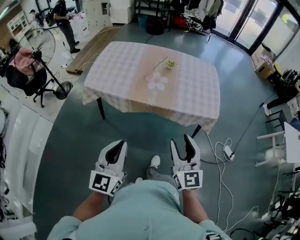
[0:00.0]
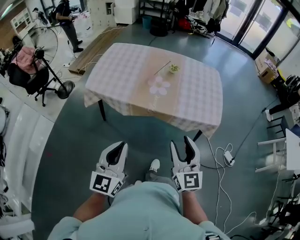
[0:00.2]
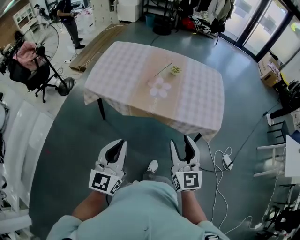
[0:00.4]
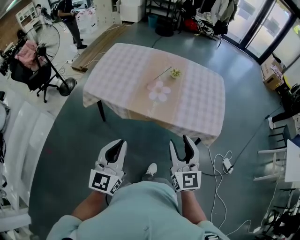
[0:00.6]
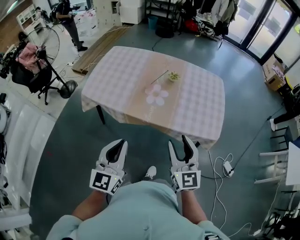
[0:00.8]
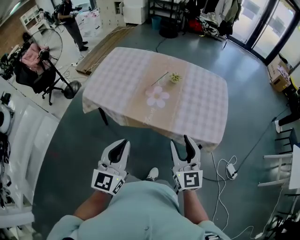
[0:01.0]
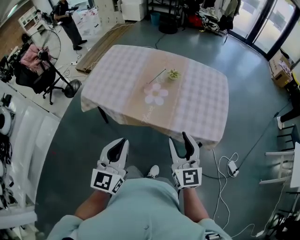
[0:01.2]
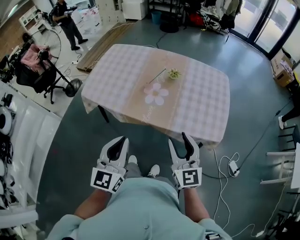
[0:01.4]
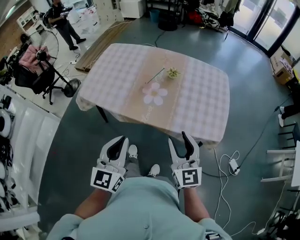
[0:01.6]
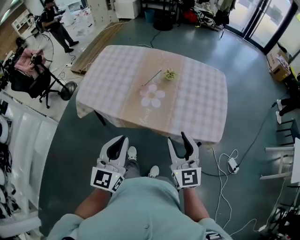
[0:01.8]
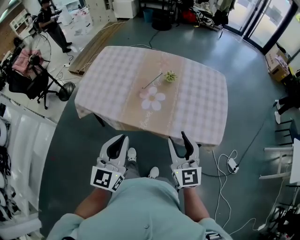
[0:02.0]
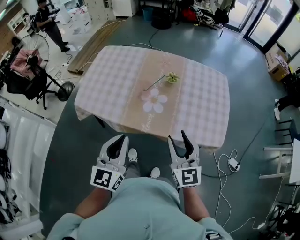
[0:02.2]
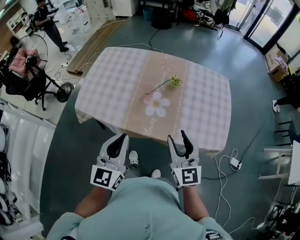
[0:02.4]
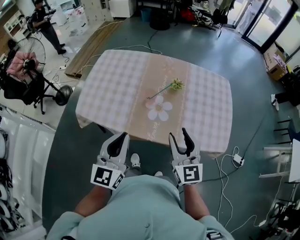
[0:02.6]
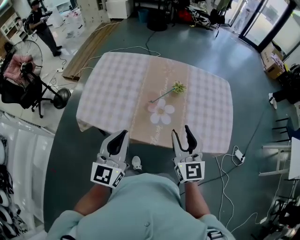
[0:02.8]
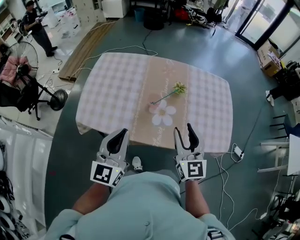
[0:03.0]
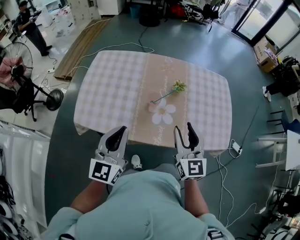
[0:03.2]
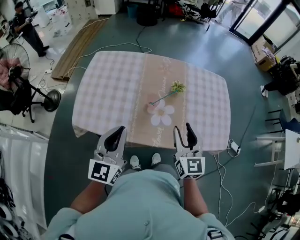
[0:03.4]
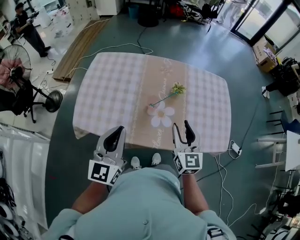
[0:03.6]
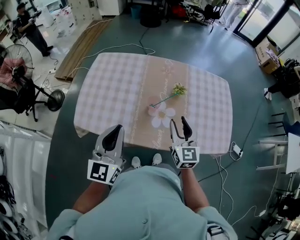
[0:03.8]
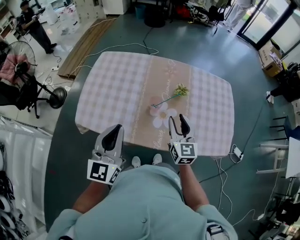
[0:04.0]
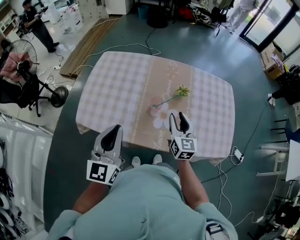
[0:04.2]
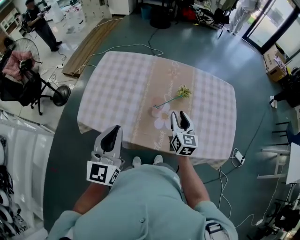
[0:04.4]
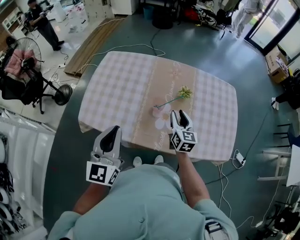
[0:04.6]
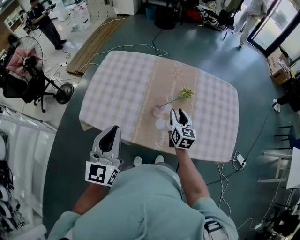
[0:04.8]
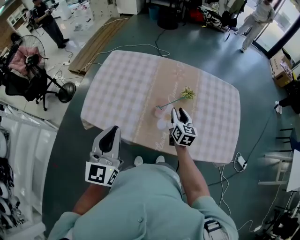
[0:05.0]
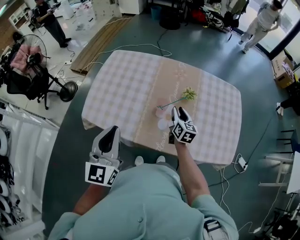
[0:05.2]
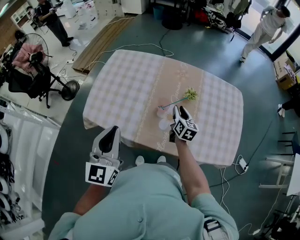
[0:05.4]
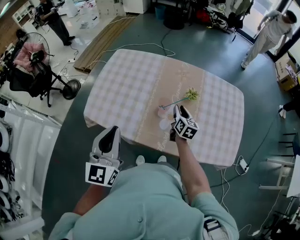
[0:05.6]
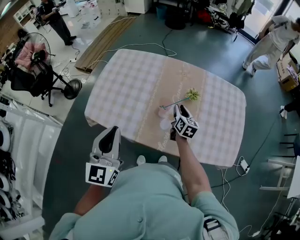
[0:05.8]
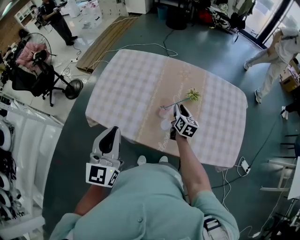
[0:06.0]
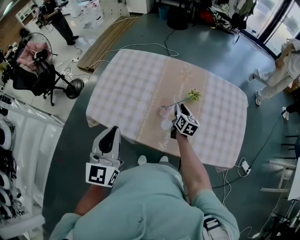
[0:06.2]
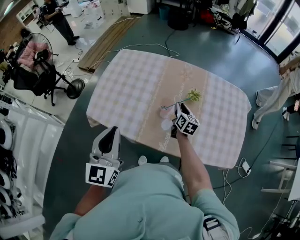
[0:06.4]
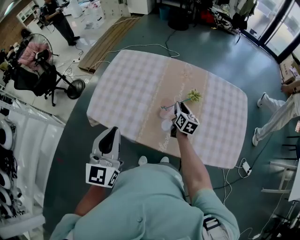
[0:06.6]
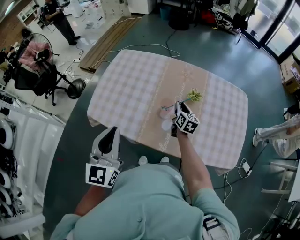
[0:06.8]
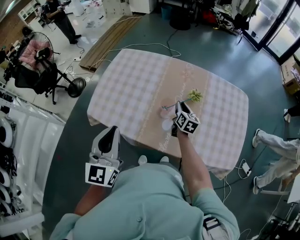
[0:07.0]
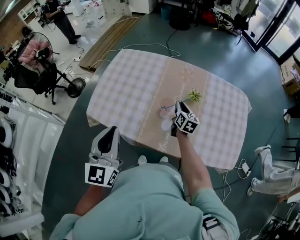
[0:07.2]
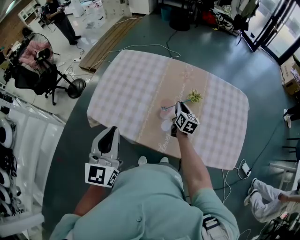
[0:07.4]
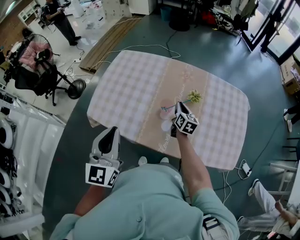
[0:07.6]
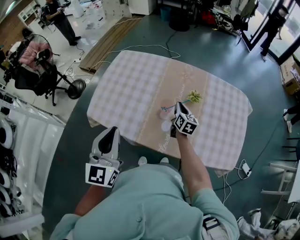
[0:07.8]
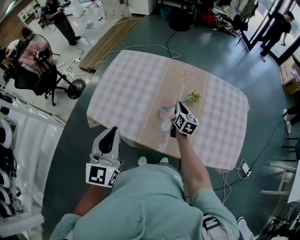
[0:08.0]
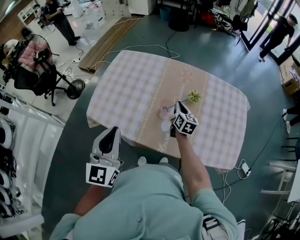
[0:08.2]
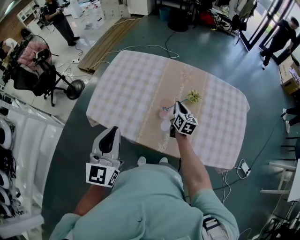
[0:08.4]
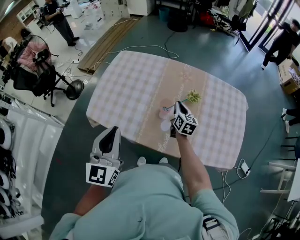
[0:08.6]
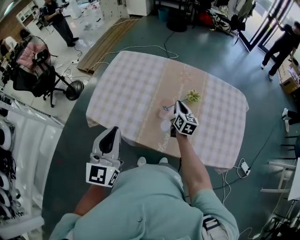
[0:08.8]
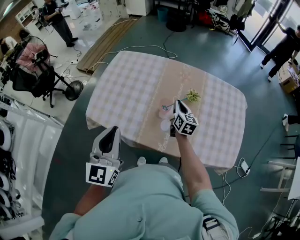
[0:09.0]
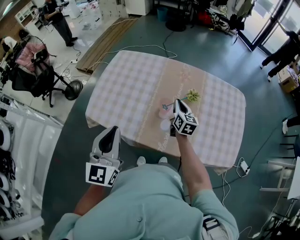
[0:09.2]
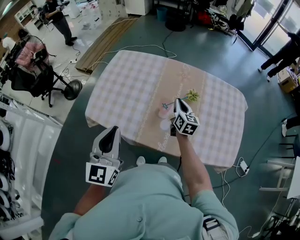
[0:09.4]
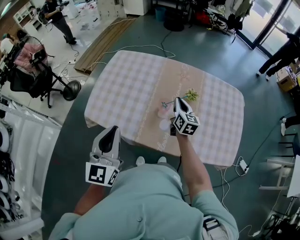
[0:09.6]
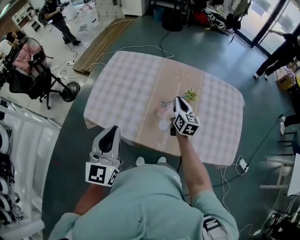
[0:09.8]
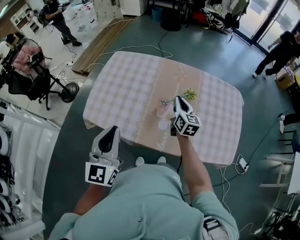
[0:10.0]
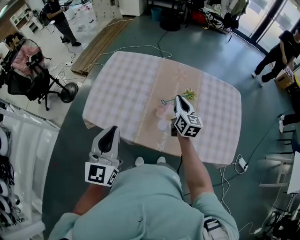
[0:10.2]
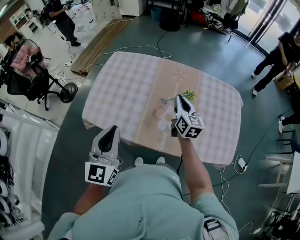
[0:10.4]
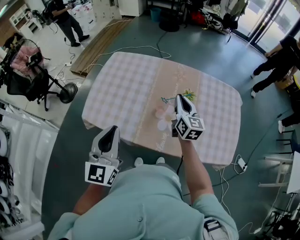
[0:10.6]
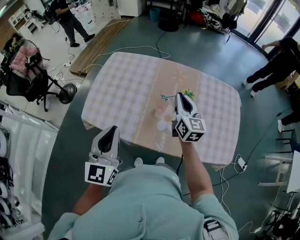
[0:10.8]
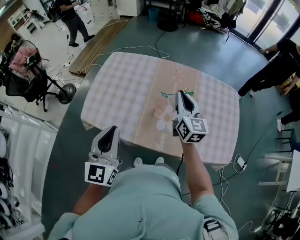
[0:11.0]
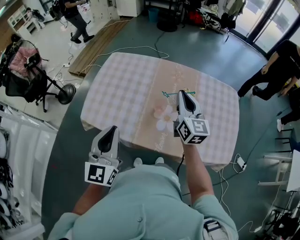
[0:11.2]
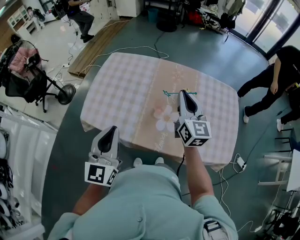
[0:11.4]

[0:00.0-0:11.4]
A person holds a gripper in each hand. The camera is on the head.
0:00.0 to 0:01.4: The two grippers go some 20 cm forward and to the right.
0:01.4 to 0:02.8: Both grippers travel together forward and to the left, about 20 cm.
0:02.8 to 0:04.2: The left gripper travels to the left and forward by some 10 cm; the right gripper is displaced forward and downward by roughly 15 cm.
0:04.2 to 0:05.6: The right gripper moves downward and forward, some 15 cm, and swivels some 20 degrees.
0:05.6 to 0:08.6: The grippers stay close to where they were, moving slightly.
0:08.6 to 0:10.0: The right gripper is displaced upward by approximately 5 cm.
0:10.0 to 0:11.4: The right gripper is displaced upward by some 15 cm.

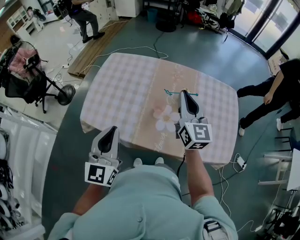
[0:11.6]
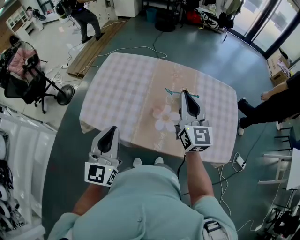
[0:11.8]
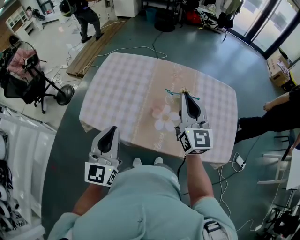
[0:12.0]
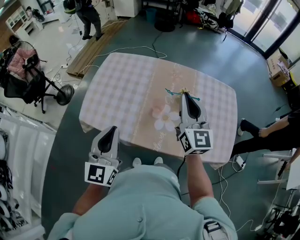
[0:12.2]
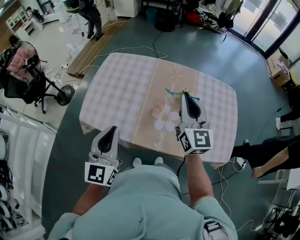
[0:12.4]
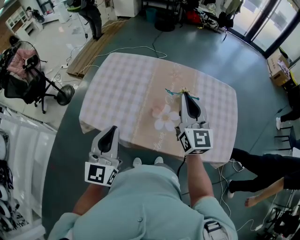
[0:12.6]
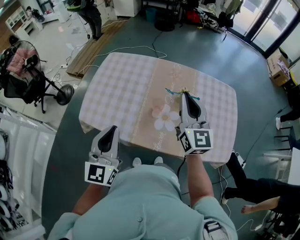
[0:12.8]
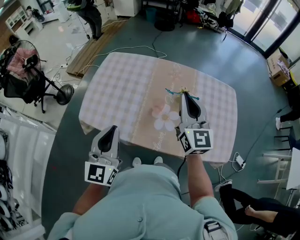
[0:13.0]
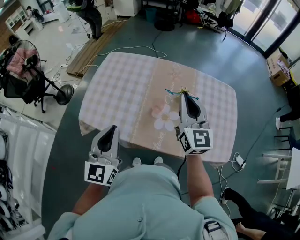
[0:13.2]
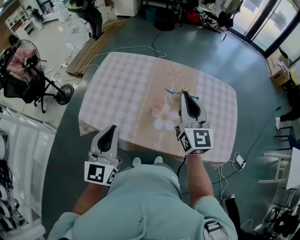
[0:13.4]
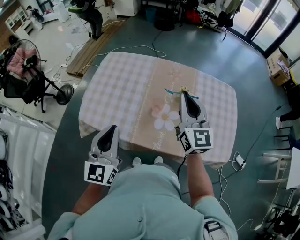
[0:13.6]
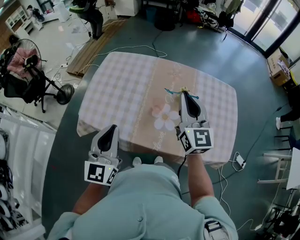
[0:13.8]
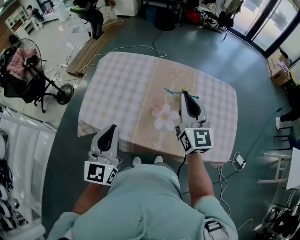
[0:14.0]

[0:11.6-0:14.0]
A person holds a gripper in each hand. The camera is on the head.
0:11.6 to 0:12.8: There are only small adjustments of the grippers.
0:12.8 to 0:14.0: Both grippers stay put.

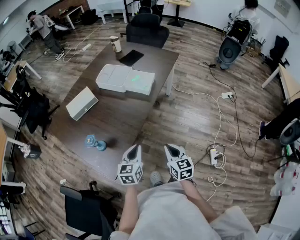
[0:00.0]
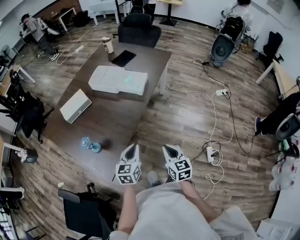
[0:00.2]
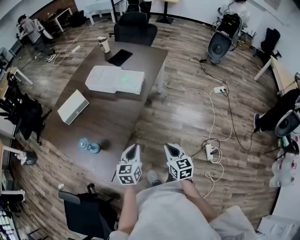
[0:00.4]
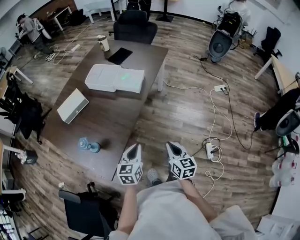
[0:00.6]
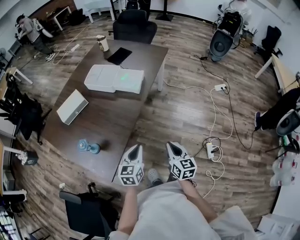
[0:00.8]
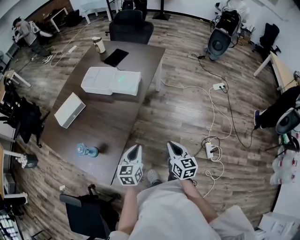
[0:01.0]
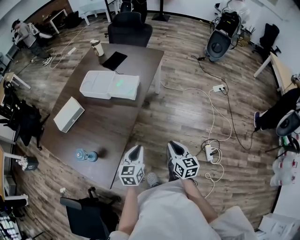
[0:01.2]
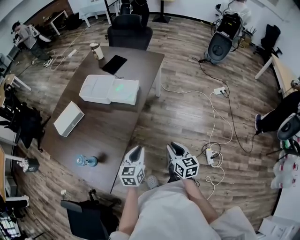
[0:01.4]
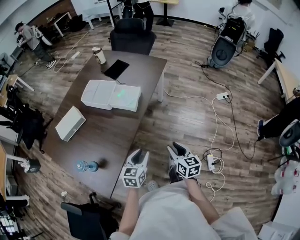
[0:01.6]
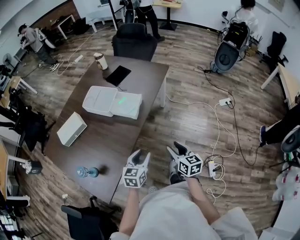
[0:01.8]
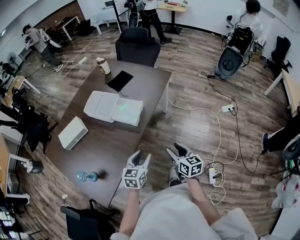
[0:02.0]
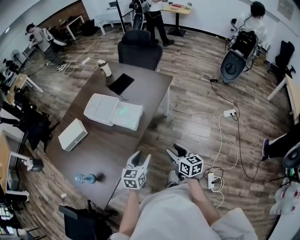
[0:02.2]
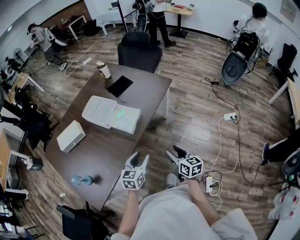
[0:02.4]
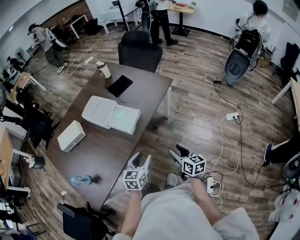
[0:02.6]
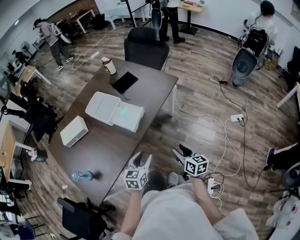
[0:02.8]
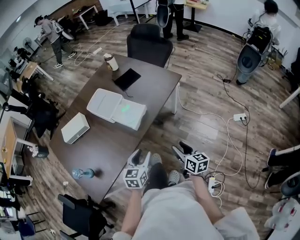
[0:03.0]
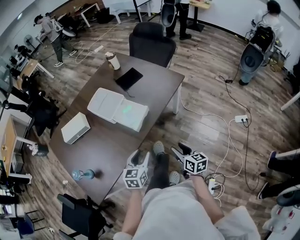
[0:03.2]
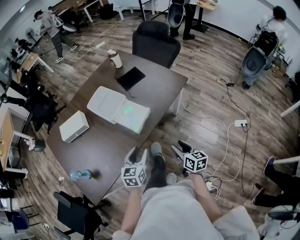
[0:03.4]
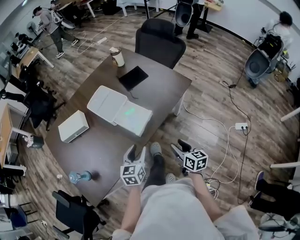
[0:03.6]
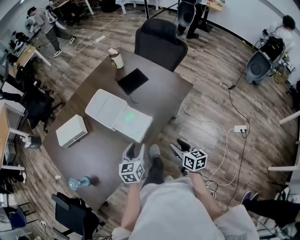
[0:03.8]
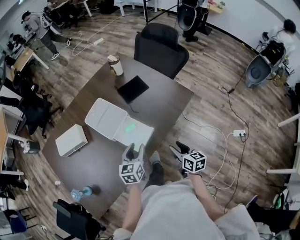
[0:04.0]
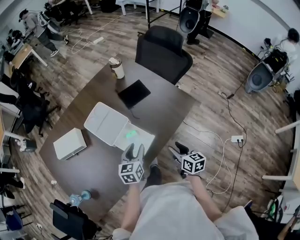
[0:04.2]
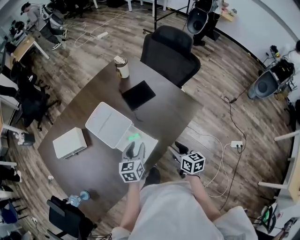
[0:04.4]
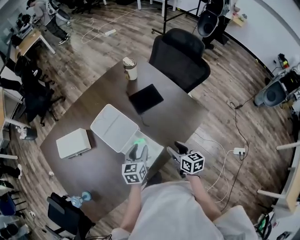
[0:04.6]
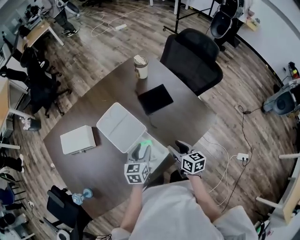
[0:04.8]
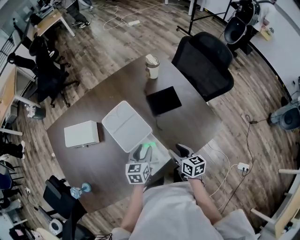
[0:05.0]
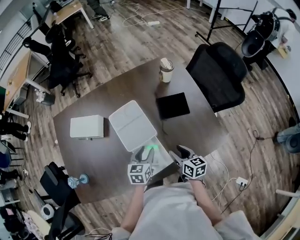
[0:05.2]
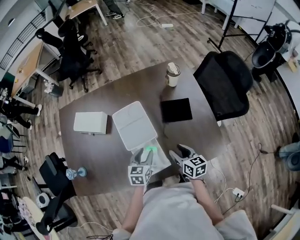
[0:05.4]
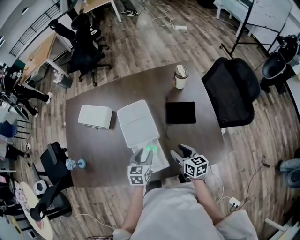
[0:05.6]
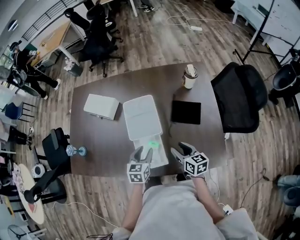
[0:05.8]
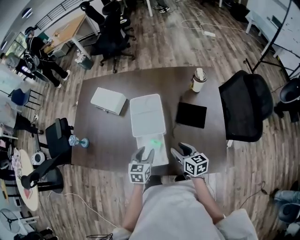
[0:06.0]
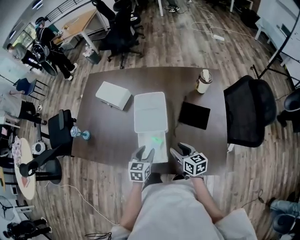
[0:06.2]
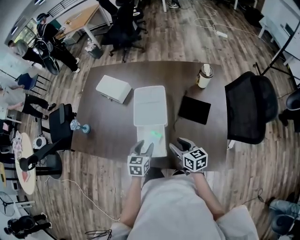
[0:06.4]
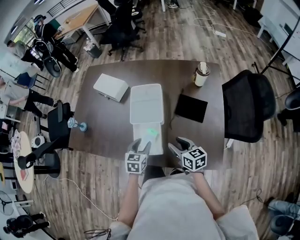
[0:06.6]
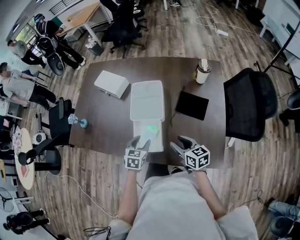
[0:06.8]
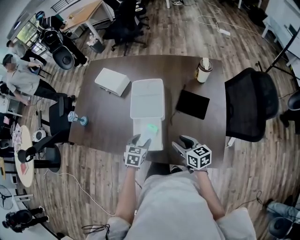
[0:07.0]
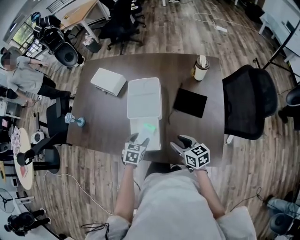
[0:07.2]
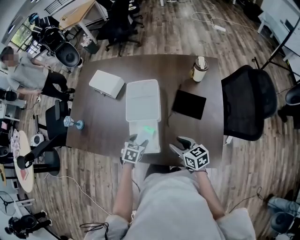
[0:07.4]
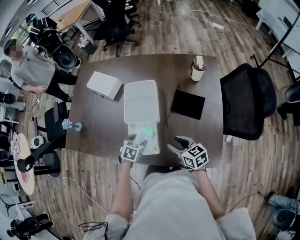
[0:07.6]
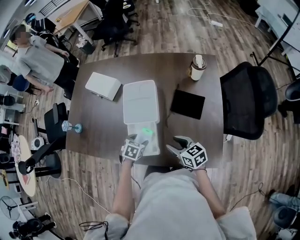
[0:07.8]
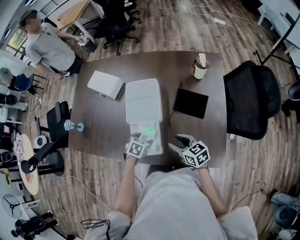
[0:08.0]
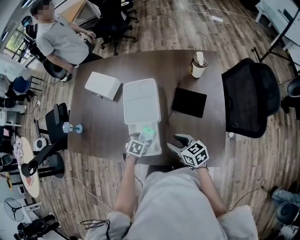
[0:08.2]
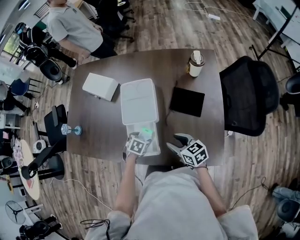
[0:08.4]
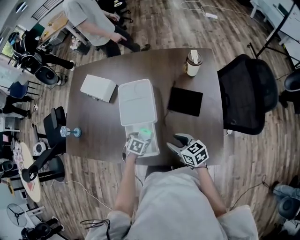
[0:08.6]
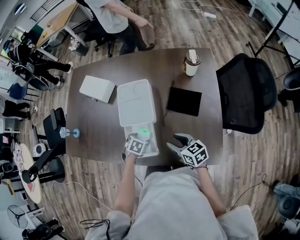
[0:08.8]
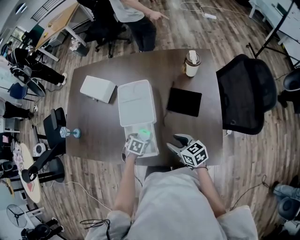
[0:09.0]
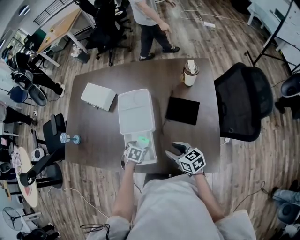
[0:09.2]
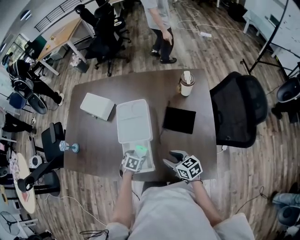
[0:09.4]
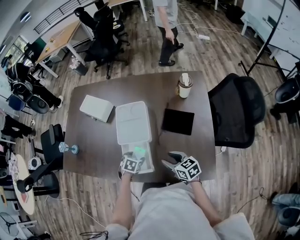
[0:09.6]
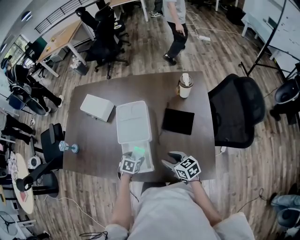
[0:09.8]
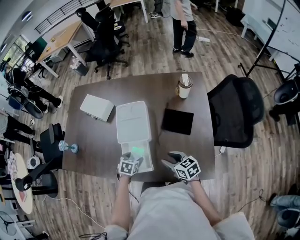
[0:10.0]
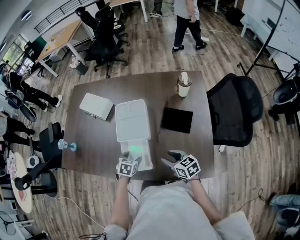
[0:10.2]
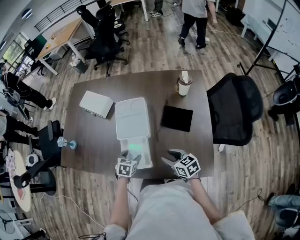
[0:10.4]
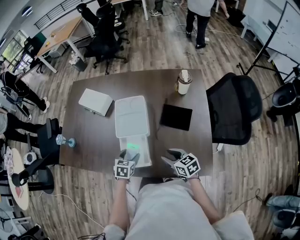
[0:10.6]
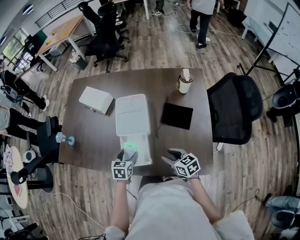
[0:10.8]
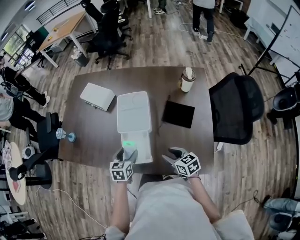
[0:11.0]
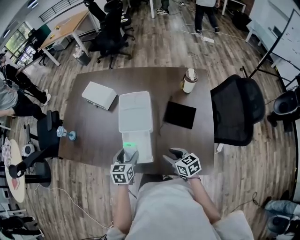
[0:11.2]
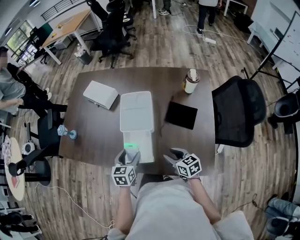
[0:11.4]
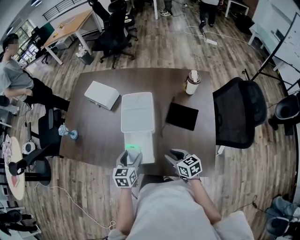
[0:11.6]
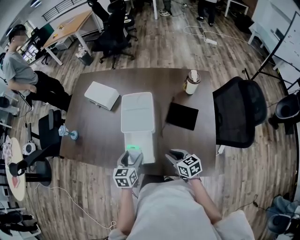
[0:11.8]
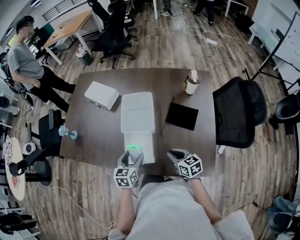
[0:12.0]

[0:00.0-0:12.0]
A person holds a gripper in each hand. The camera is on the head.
0:00.0 to 0:01.6: Both grippers move forward and to the right, roughly 15 cm. The right gripper opens up, while the left gripper opens its fingers.
0:01.6 to 0:03.0: The grippers both shift forward and to the right by roughly 20 cm.
0:03.0 to 0:04.4: The grippers both shift forward by approximately 30 cm.
0:04.4 to 0:06.0: The right gripper moves about 15 cm, and swivels approximately 50 degrees. The left gripper changes its angle by approximately 40 degrees.
0:06.0 to 0:07.6: The left gripper shifts some 10 cm downward, and changes its angle by about 30 degrees.
0:07.6 to 0:09.0: The left gripper is displaced downward by some 5 cm.
0:09.0 to 0:10.4: The left gripper travels upward by about 5 cm.
0:10.4 to 0:12.0: The right gripper closes; the left gripper travels upward by roughly 5 cm, and swivels about 30 degrees.
